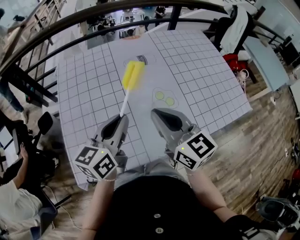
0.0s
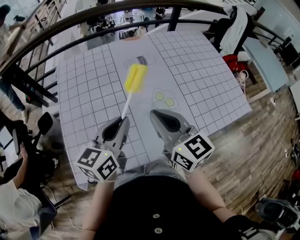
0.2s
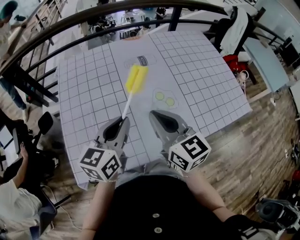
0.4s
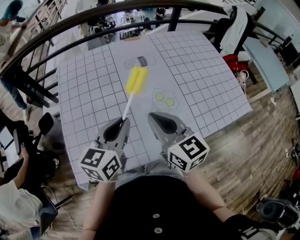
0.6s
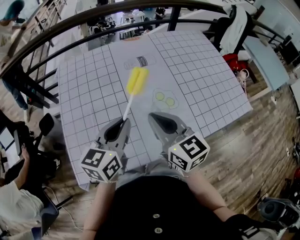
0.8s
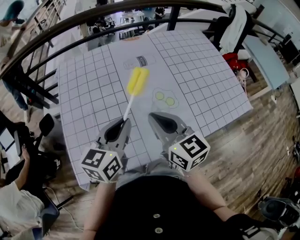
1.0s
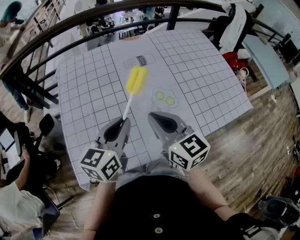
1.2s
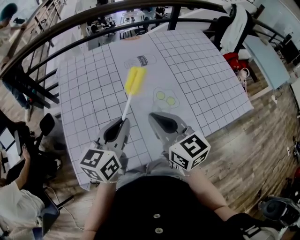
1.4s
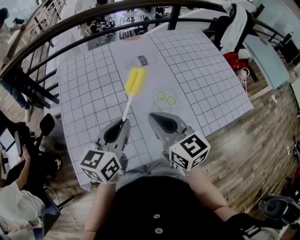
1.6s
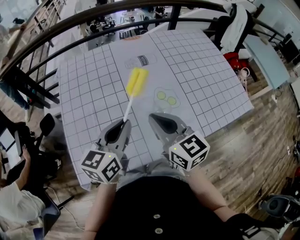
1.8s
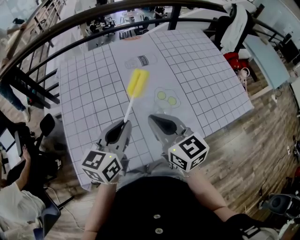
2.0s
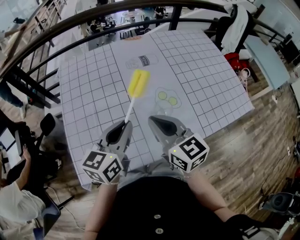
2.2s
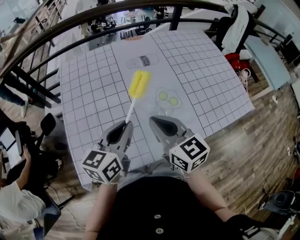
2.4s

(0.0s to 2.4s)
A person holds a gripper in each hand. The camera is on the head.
0.0s - 2.4s: The grippers make only small movements.

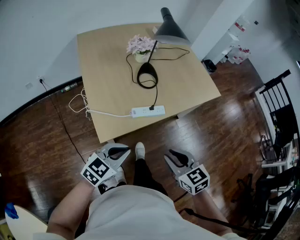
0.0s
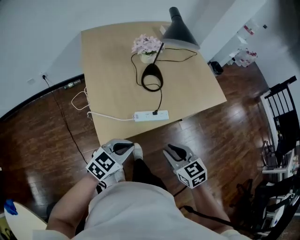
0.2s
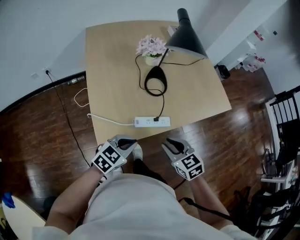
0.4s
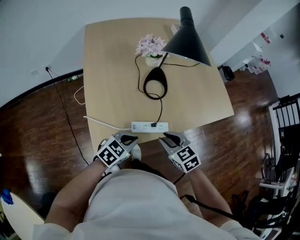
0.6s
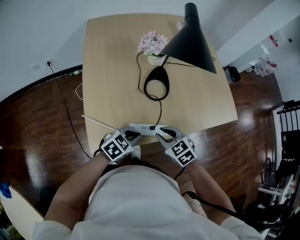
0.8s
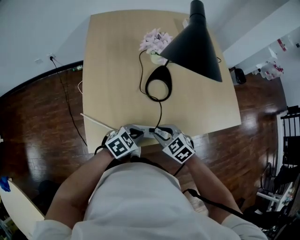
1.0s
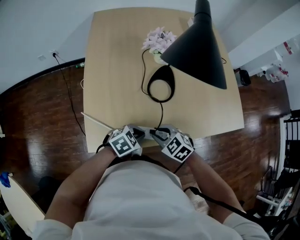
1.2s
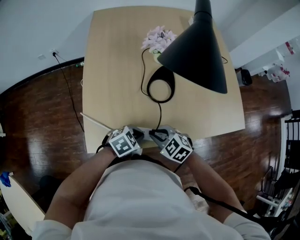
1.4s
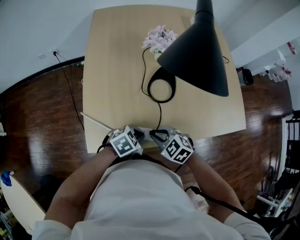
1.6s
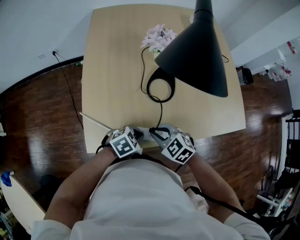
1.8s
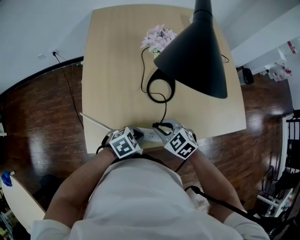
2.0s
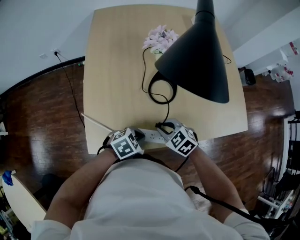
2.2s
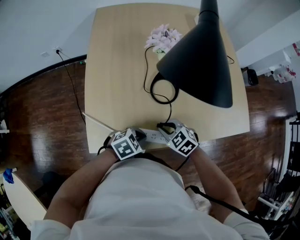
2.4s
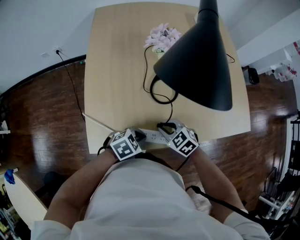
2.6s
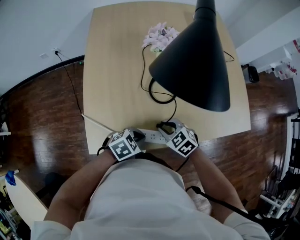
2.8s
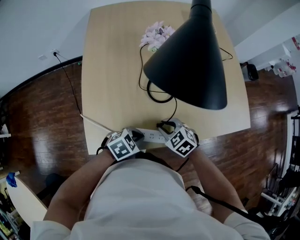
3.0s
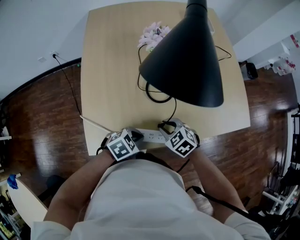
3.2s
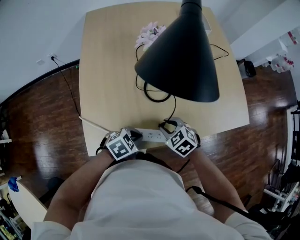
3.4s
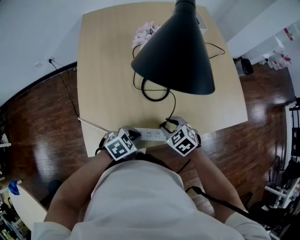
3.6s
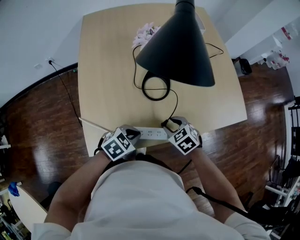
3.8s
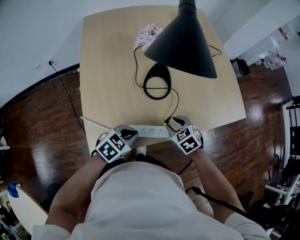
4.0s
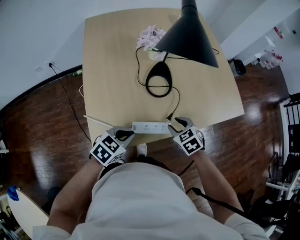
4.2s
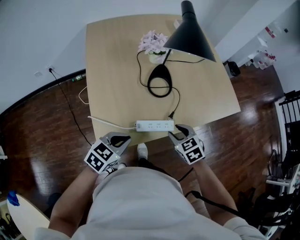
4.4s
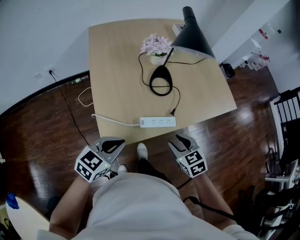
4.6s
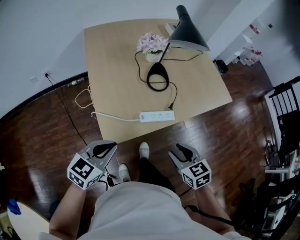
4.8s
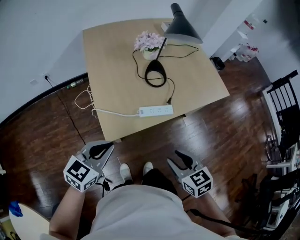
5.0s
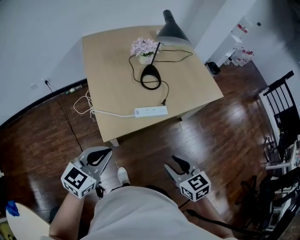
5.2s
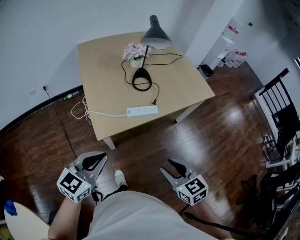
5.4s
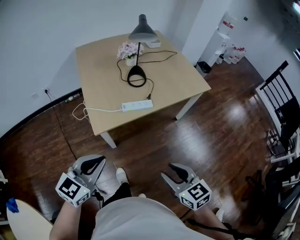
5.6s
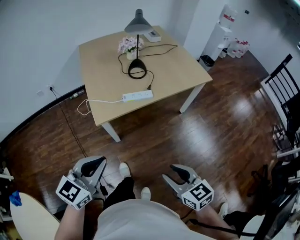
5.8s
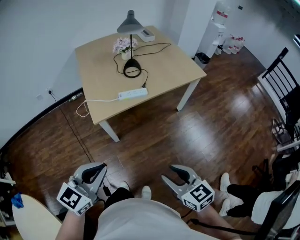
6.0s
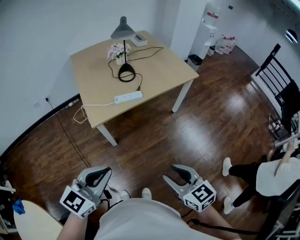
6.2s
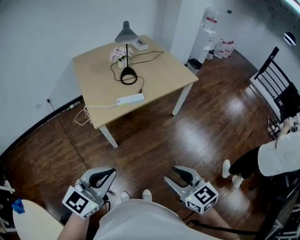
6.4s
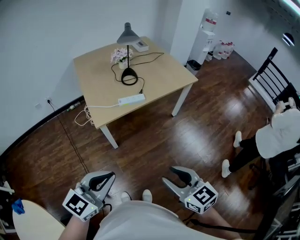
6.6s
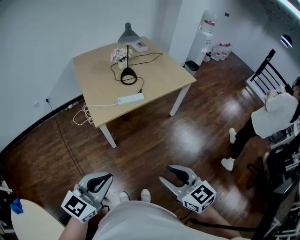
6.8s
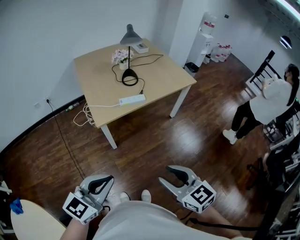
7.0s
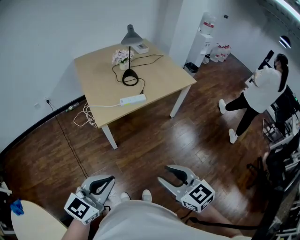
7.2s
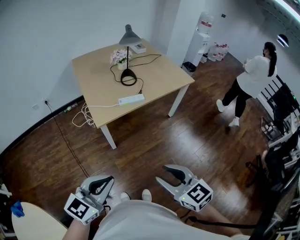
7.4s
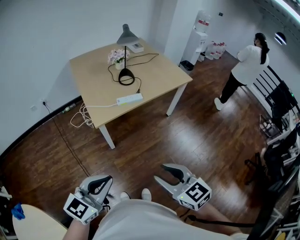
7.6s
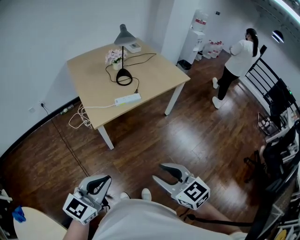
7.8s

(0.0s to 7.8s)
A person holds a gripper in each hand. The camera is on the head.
0.0s - 1.6s: The left gripper moves roughly 30 cm, and changes its angle by approximately 30 degrees. The right gripper moves some 30 cm, and swivels roughly 50 degrees.
1.6s - 3.2s: The right gripper changes place by some 5 cm.
3.2s - 4.6s: The right gripper changes place by approximately 20 cm, and changes its angle by roughly 30 degrees; the left gripper goes some 15 cm upward, and changes its angle by approximately 30 degrees.
4.6s - 6.2s: The two grippers go roughly 40 cm backward. The right gripper changes its angle by roughly 30 degrees.
6.2s - 7.8s: The right gripper travels to the left by roughly 10 cm. The left gripper is displaced backward and to the left by roughly 10 cm.

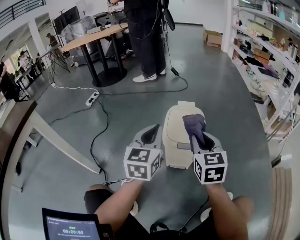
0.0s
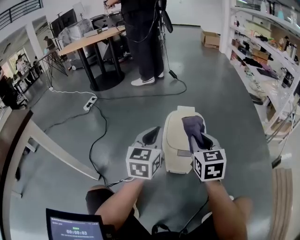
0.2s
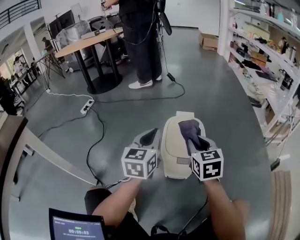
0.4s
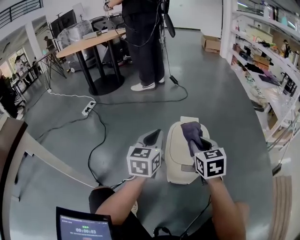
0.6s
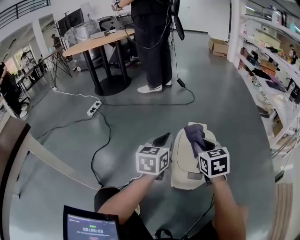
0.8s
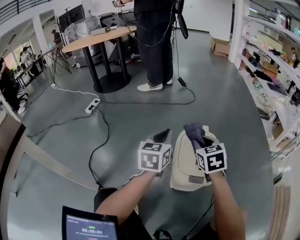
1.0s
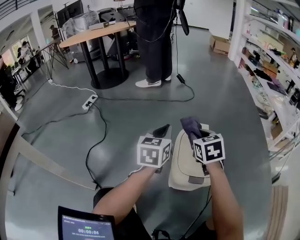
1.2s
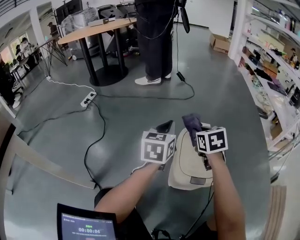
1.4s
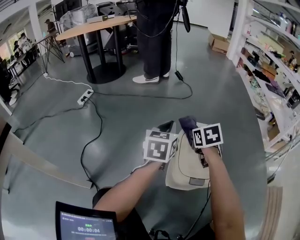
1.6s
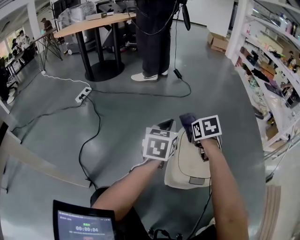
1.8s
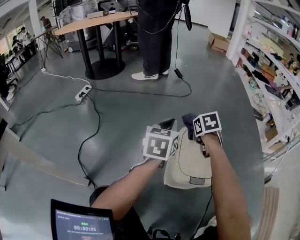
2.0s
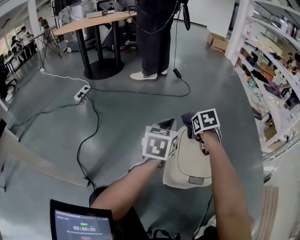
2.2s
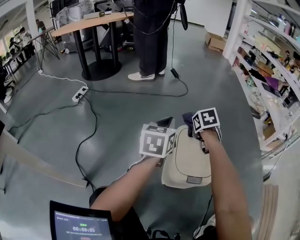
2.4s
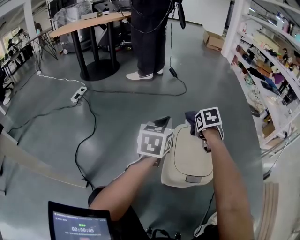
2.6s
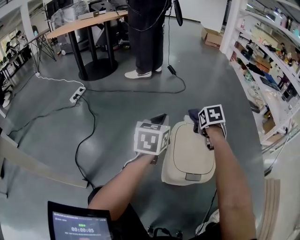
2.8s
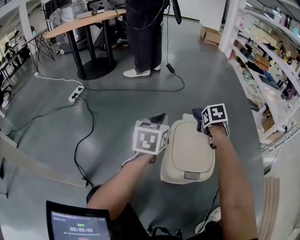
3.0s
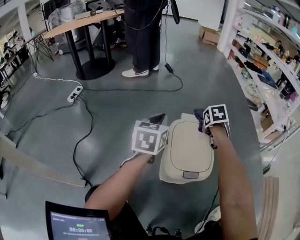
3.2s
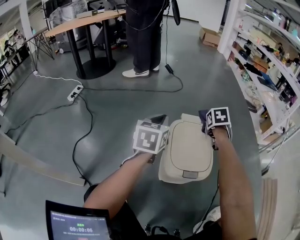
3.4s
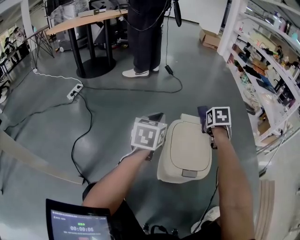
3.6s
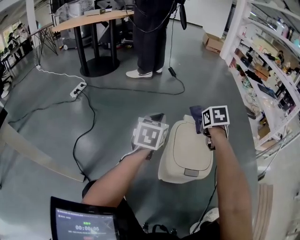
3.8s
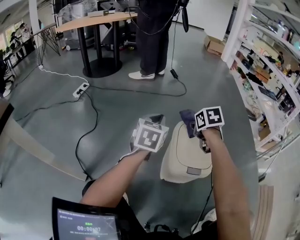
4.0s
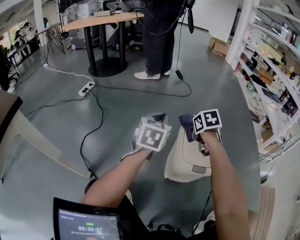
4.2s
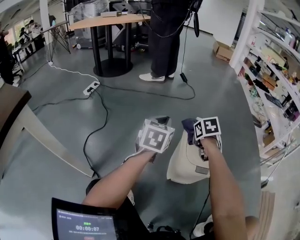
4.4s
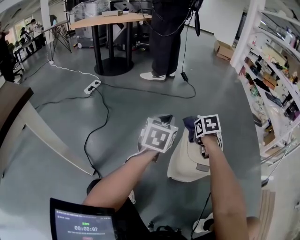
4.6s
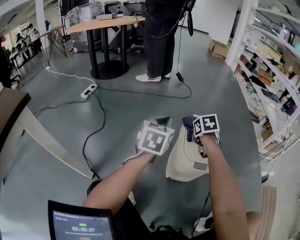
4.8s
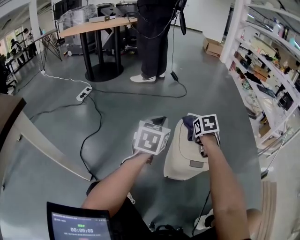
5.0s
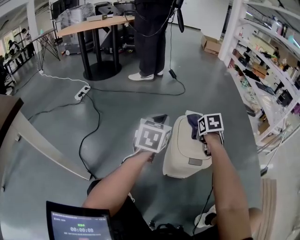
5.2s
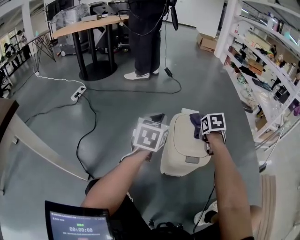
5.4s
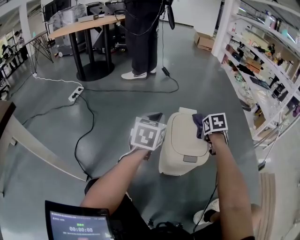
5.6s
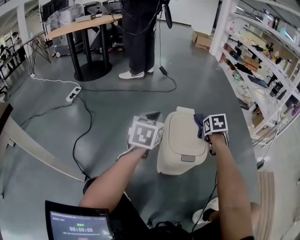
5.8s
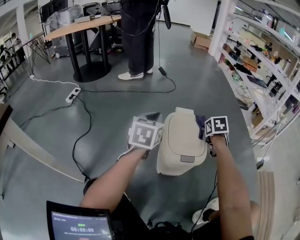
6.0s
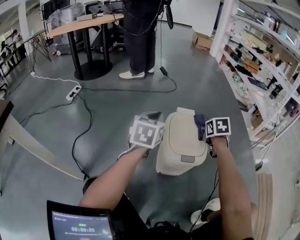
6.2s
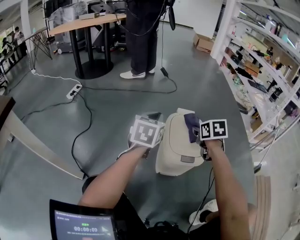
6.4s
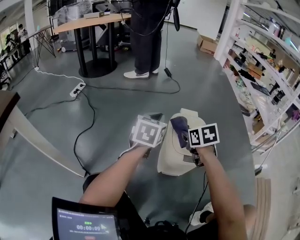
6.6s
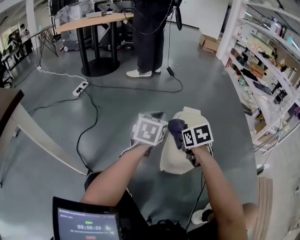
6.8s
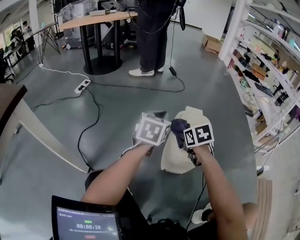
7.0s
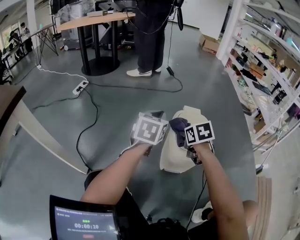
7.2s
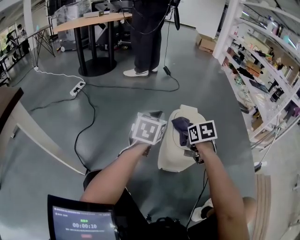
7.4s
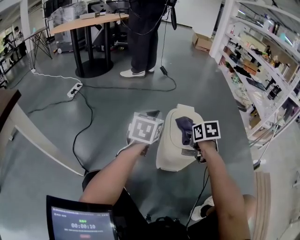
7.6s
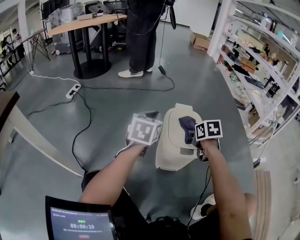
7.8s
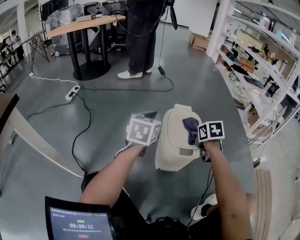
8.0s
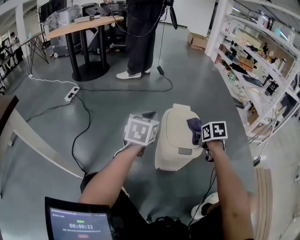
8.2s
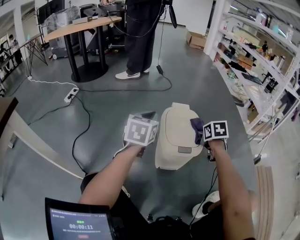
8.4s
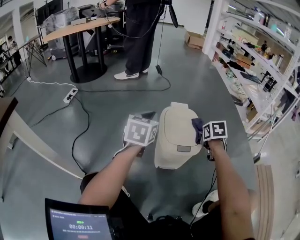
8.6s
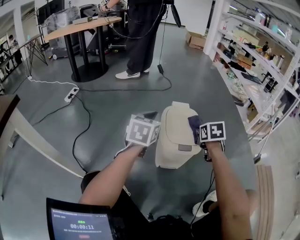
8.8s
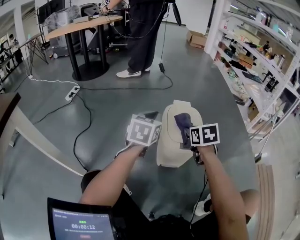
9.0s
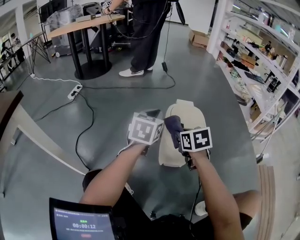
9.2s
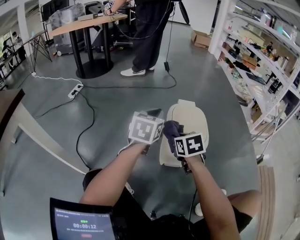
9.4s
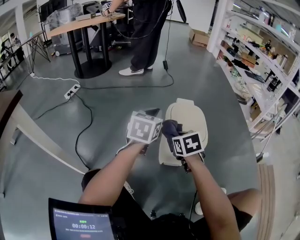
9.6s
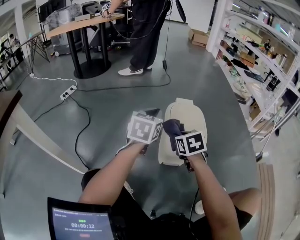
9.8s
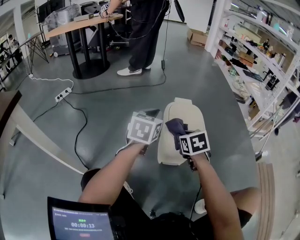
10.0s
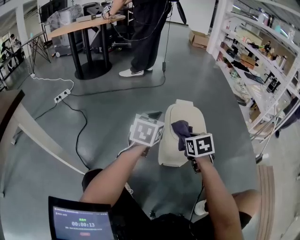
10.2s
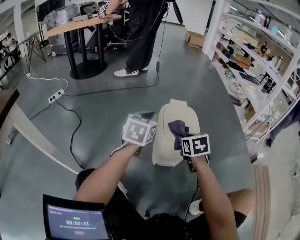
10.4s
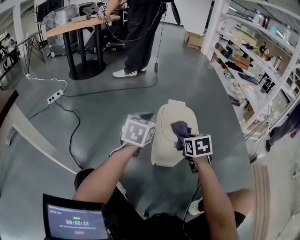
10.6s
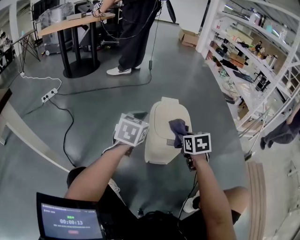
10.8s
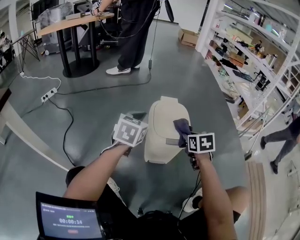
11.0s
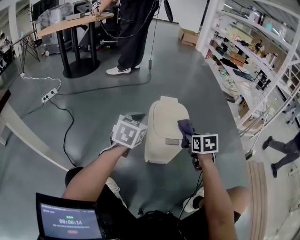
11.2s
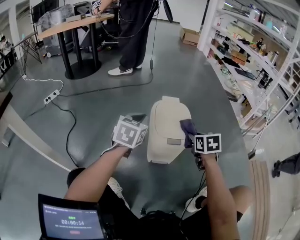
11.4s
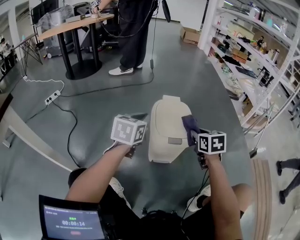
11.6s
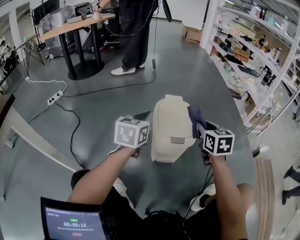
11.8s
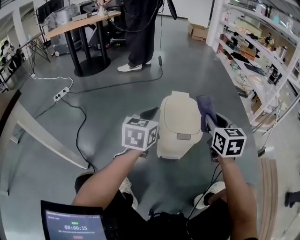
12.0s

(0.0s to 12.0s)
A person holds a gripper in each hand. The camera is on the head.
0.0s - 1.6s: The left gripper heads forward, covering roughly 20 cm. Meanwhile the right gripper is displaced forward and downward by roughly 25 cm, and swivels approximately 30 degrees.
1.6s - 3.0s: The right gripper is displaced to the right and forward by about 10 cm.
3.0s - 4.4s: The right gripper goes some 15 cm to the left and backward. The left gripper goes some 10 cm backward and to the left.
4.4s - 6.0s: The left gripper goes some 5 cm to the right, while the right gripper travels to the right by approximately 20 cm.
6.0s - 7.6s: The right gripper is displaced to the left and backward by some 15 cm.
7.6s - 9.0s: The right gripper reaches about 10 cm to the right, then returns.
10.4s - 12.0s: The right gripper goes roughly 15 cm upward and to the right, and rotates roughly 30 degrees.

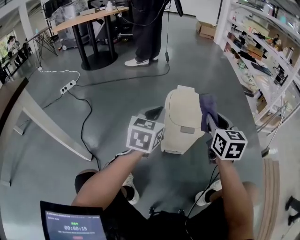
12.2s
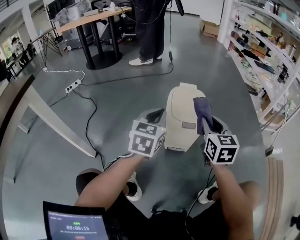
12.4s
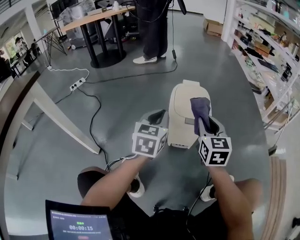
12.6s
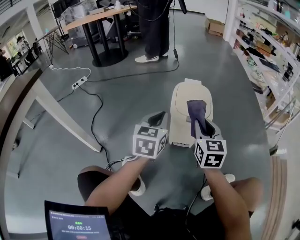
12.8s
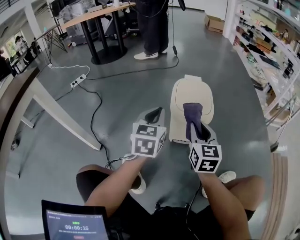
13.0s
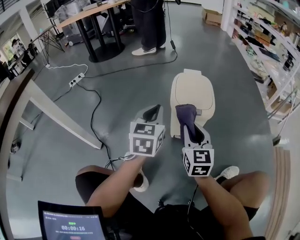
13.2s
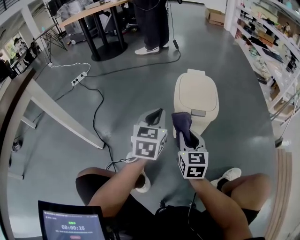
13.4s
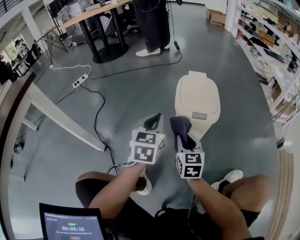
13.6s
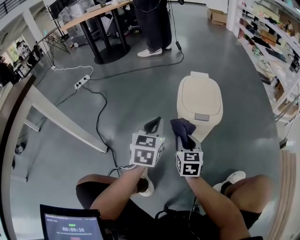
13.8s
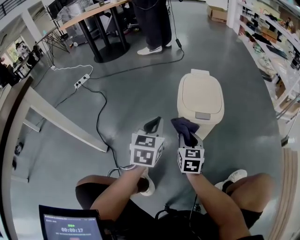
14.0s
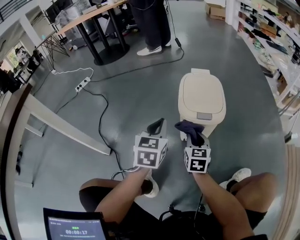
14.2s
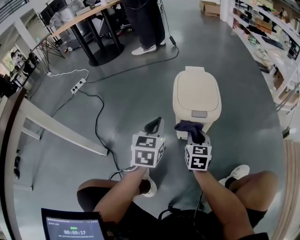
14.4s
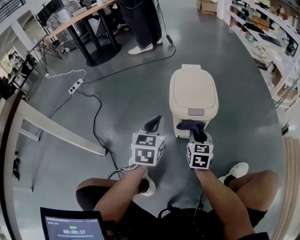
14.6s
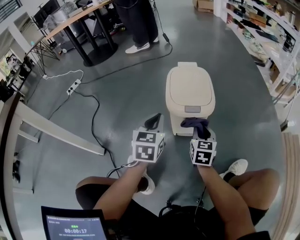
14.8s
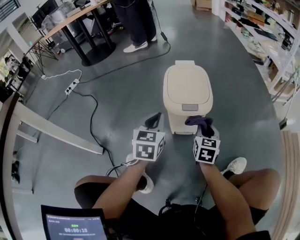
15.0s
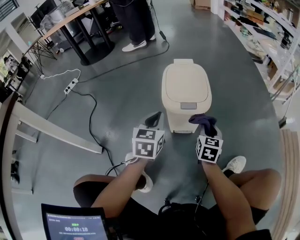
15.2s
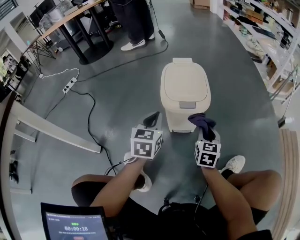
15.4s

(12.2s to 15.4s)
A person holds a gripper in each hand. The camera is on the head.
12.2s - 13.8s: The left gripper moves downward and backward, some 10 cm. The right gripper is displaced downward and to the left by roughly 25 cm.
13.8s - 15.4s: The left gripper goes some 10 cm to the right and downward; the right gripper shifts roughly 15 cm to the right.
